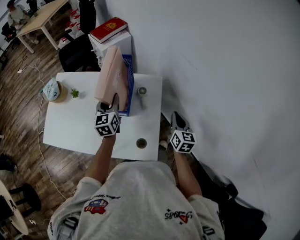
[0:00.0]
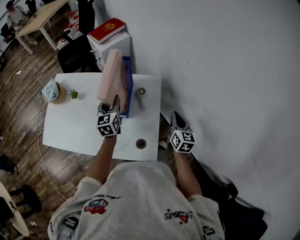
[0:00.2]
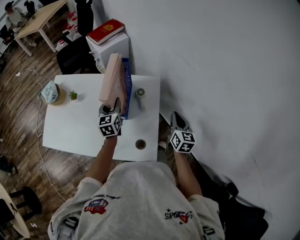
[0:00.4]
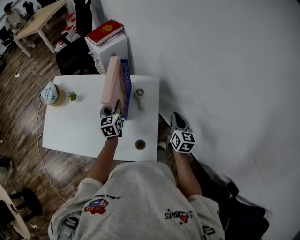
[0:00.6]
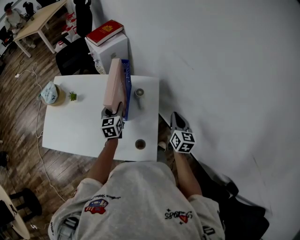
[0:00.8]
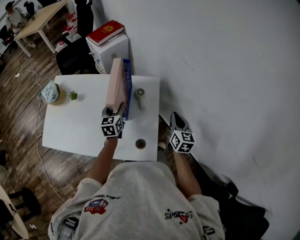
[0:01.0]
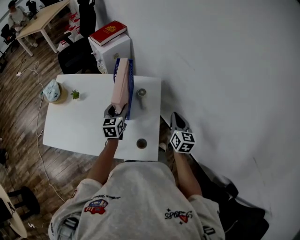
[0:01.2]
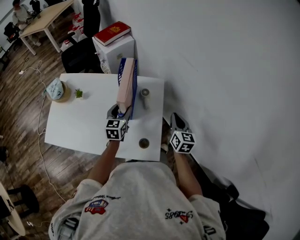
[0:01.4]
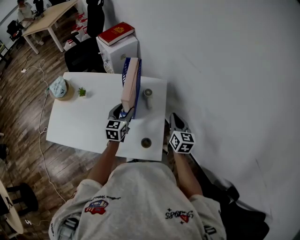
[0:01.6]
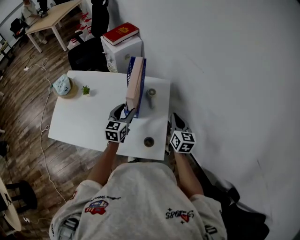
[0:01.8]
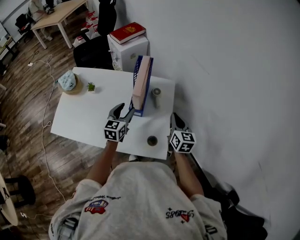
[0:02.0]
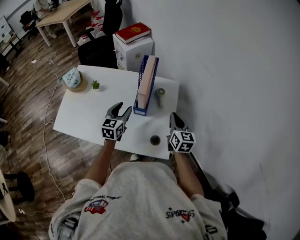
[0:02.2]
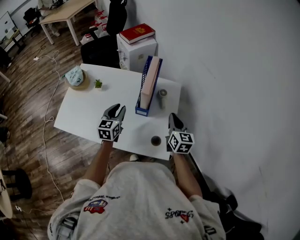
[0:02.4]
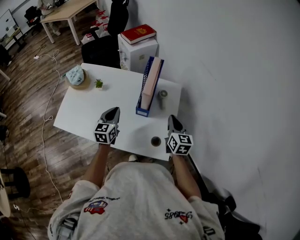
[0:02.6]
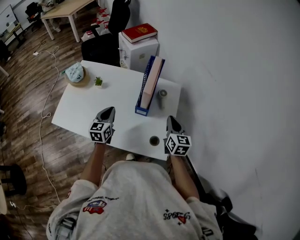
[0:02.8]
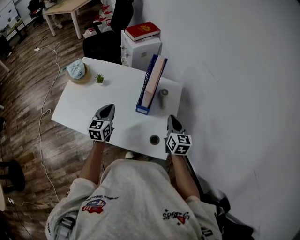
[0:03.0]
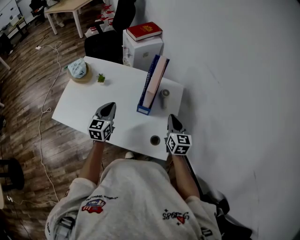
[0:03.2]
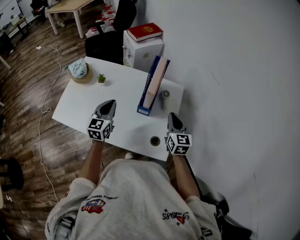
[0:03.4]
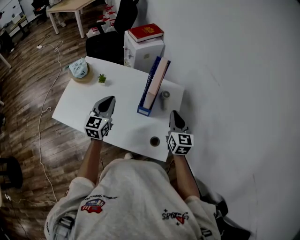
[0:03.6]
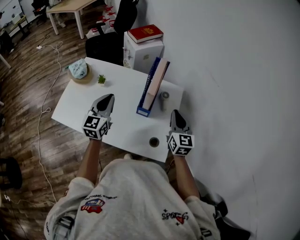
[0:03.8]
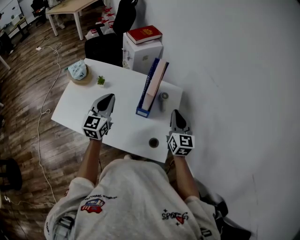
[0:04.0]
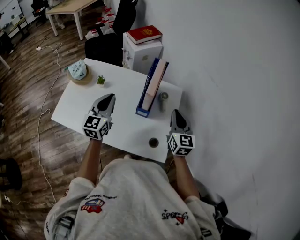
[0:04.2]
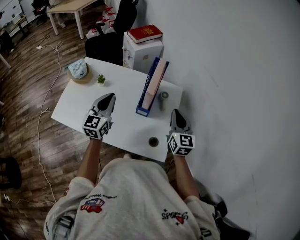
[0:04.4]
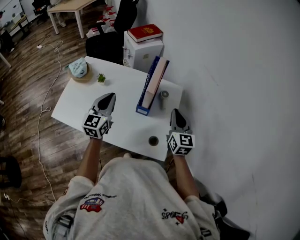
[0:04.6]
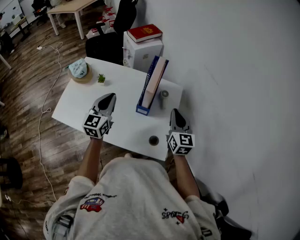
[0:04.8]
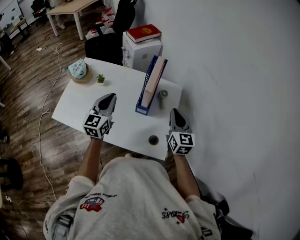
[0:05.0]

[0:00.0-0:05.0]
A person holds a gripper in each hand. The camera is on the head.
0:00.0 to 0:01.6: The right gripper shifts by roughly 5 cm. Meanwhile the left gripper heads backward, covering some 5 cm.
0:01.6 to 0:03.4: The right gripper travels to the left by roughly 15 cm, while the left gripper shifts approximately 20 cm to the left and backward, and closes.
0:03.4 to 0:05.0: The left gripper is displaced upward by about 5 cm.

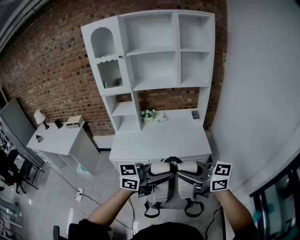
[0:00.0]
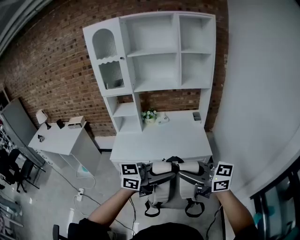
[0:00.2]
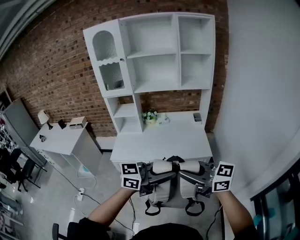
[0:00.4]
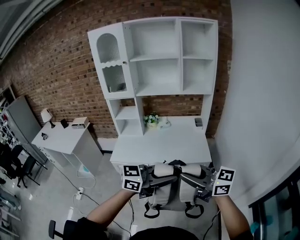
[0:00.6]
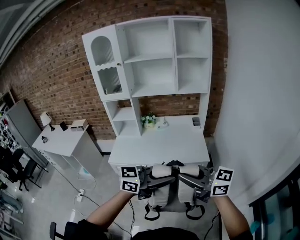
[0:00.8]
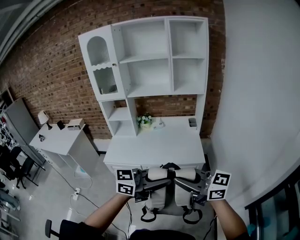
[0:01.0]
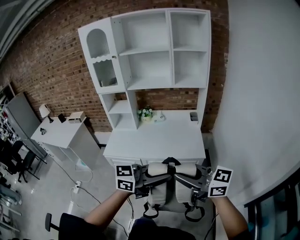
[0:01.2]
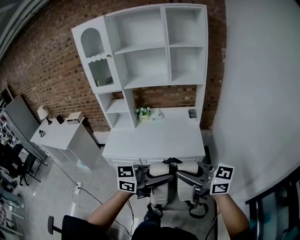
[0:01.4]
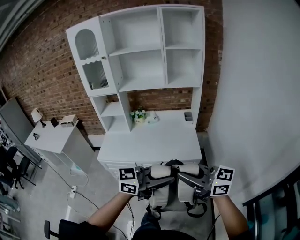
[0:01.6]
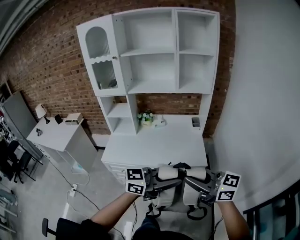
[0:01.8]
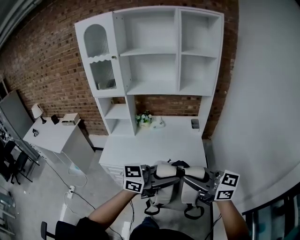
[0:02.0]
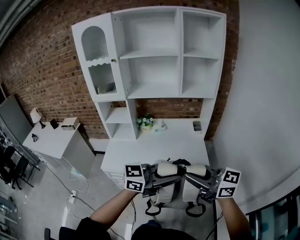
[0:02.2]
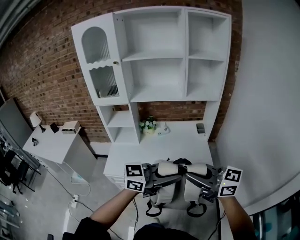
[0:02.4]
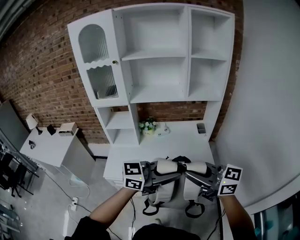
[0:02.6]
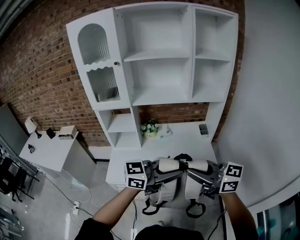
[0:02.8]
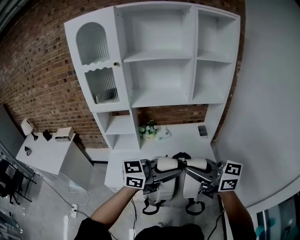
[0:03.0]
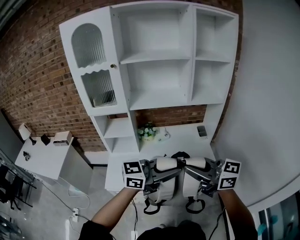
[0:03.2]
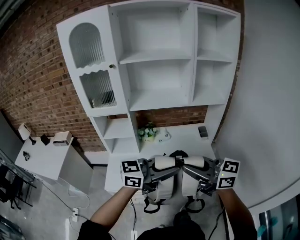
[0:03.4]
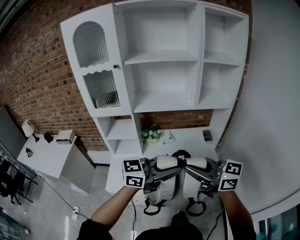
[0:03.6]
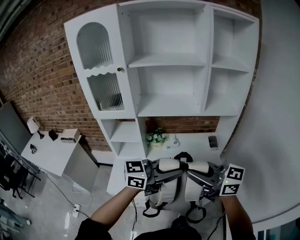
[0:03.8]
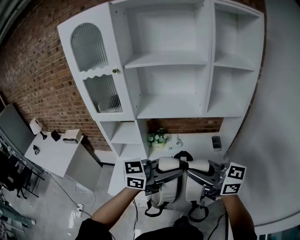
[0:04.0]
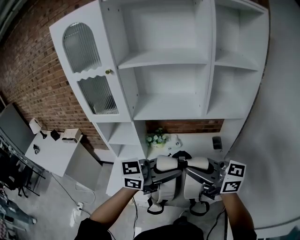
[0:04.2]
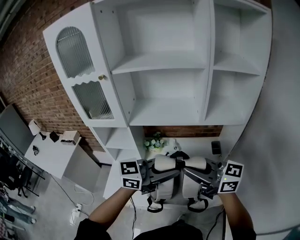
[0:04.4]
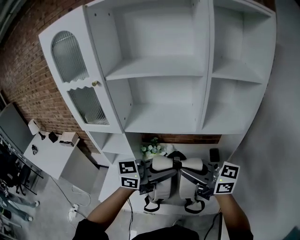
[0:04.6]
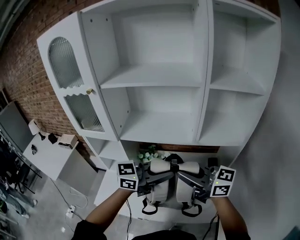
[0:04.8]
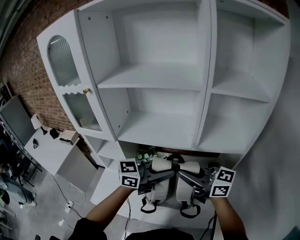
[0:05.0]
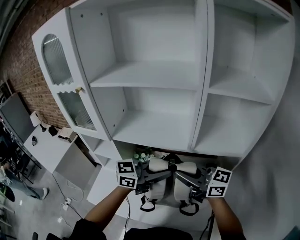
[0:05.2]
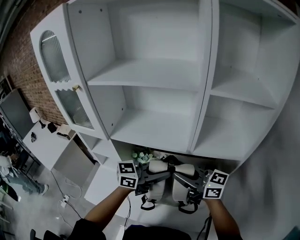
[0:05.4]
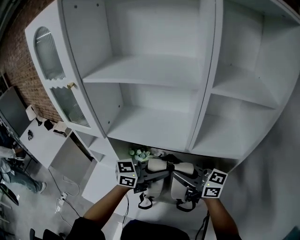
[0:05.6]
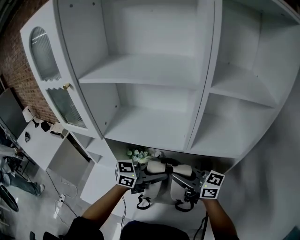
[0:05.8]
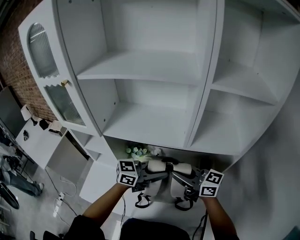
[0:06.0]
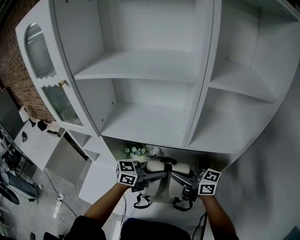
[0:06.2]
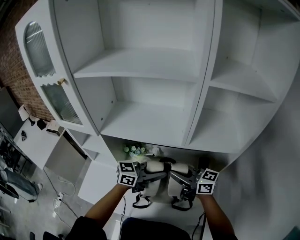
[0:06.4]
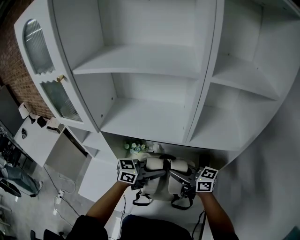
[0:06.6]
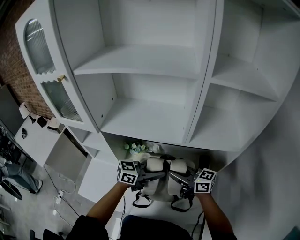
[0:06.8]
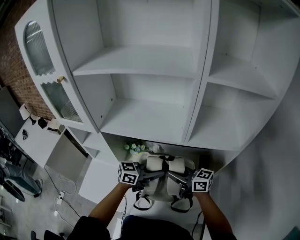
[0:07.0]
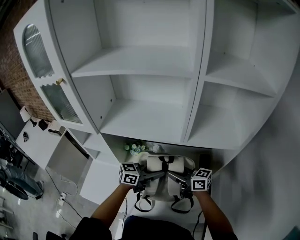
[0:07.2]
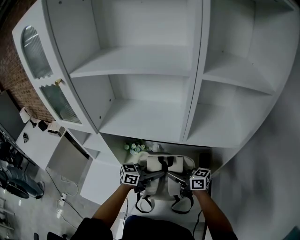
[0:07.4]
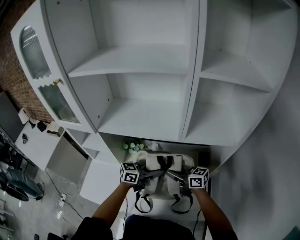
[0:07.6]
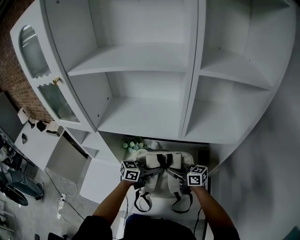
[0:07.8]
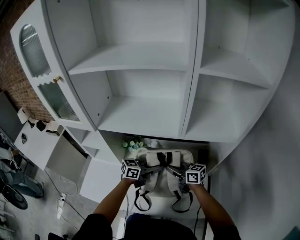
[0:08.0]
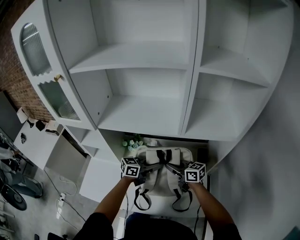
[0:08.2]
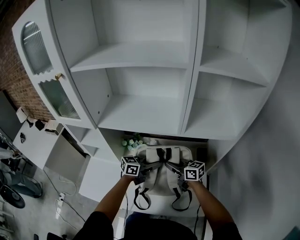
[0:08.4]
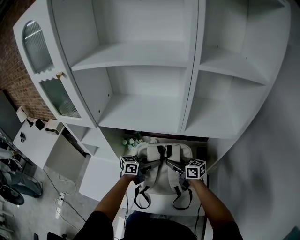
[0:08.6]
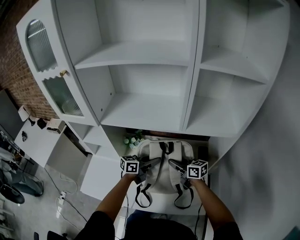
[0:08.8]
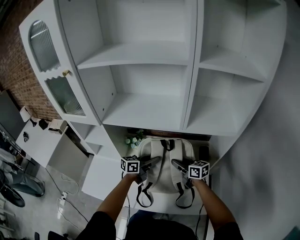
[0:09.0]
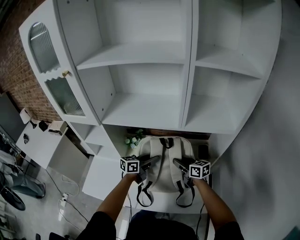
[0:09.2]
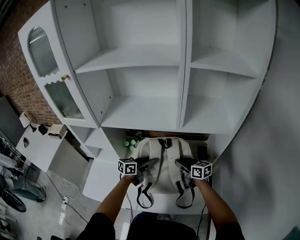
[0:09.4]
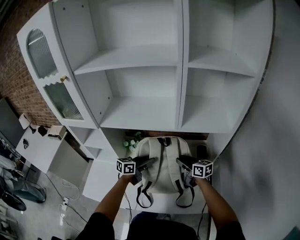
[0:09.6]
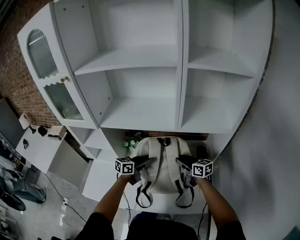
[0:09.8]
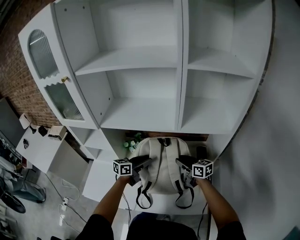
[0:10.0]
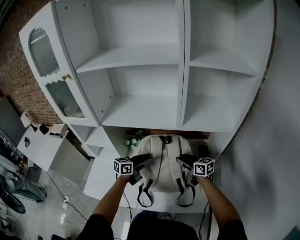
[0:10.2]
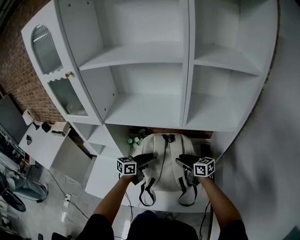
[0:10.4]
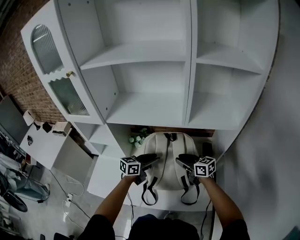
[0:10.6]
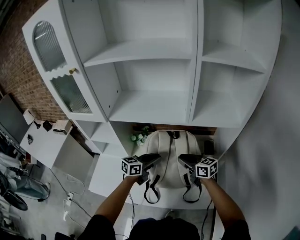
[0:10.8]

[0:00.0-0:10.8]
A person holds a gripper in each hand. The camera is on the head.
0:00.0 to 0:01.6: The right gripper ends up about 15 cm from where it was. Meanwhile the left gripper changes place by roughly 15 cm.
0:01.6 to 0:03.0: The right gripper moves approximately 30 cm. The left gripper changes place by approximately 30 cm.
0:03.0 to 0:04.6: The left gripper shifts by some 25 cm. The right gripper ends up about 25 cm from where it was.
0:04.6 to 0:06.2: The left gripper moves approximately 20 cm. The right gripper moves some 20 cm.
0:06.2 to 0:07.8: The two grippers go some 15 cm downward.
0:07.8 to 0:09.2: The left gripper shifts by some 5 cm. The right gripper moves approximately 5 cm, and opens its fingers.
0:09.2 to 0:10.8: The right gripper changes place by approximately 5 cm.

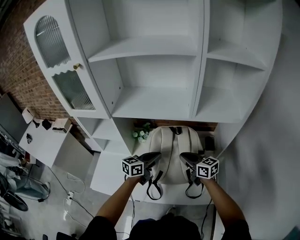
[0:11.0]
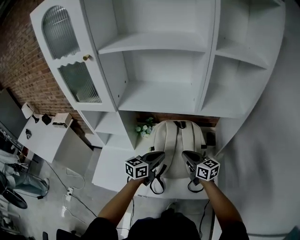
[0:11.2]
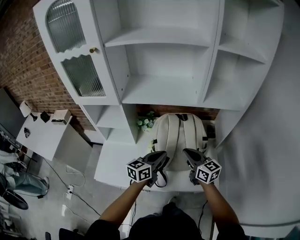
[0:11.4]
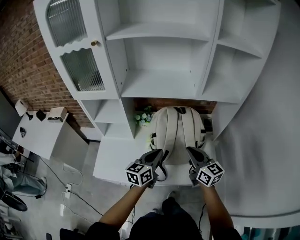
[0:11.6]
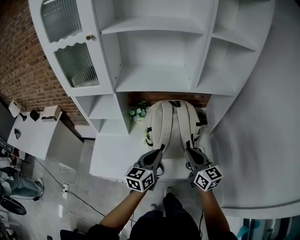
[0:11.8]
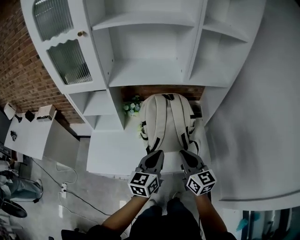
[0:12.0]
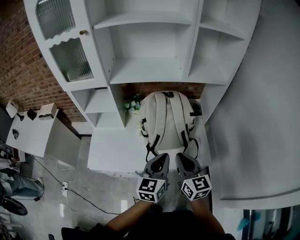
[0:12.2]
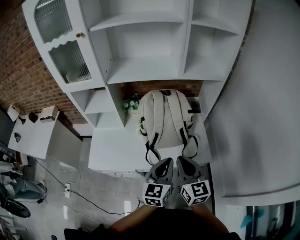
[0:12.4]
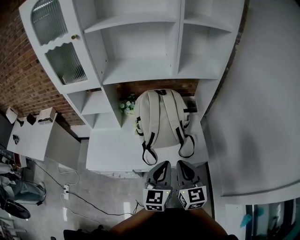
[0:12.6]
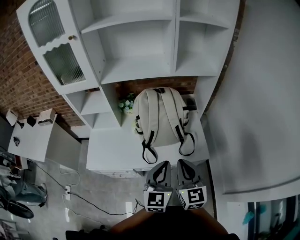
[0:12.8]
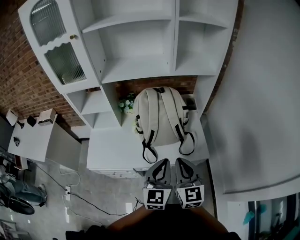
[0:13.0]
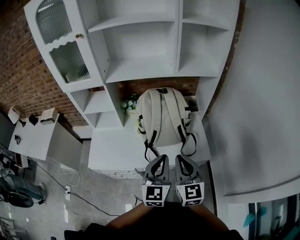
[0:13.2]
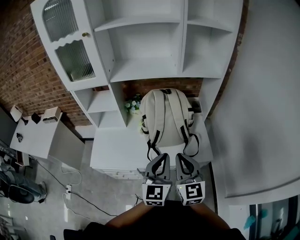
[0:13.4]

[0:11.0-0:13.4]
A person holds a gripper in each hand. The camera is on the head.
0:11.0 to 0:12.2: Both grippers move backward, roughly 25 cm. The left gripper swivels roughly 20 degrees. The right gripper rotates about 30 degrees.
0:12.2 to 0:13.4: Both grippers travel together backward, approximately 5 cm.

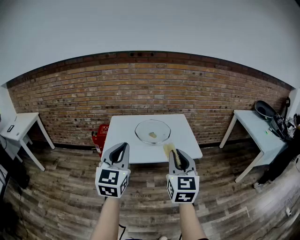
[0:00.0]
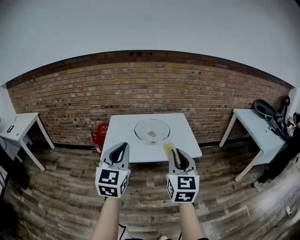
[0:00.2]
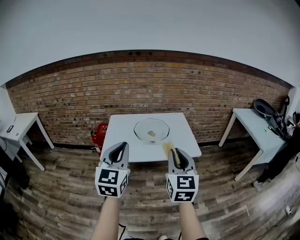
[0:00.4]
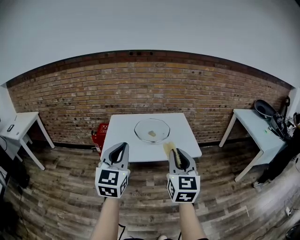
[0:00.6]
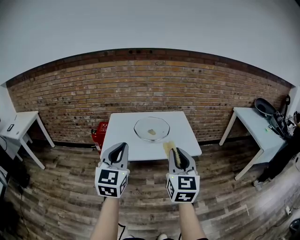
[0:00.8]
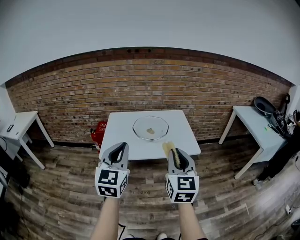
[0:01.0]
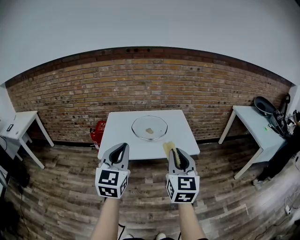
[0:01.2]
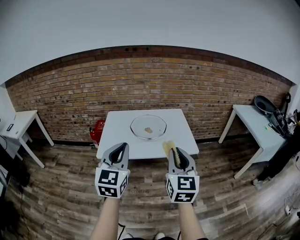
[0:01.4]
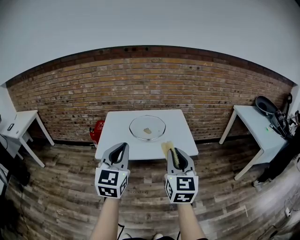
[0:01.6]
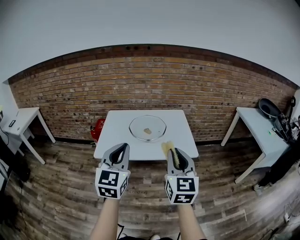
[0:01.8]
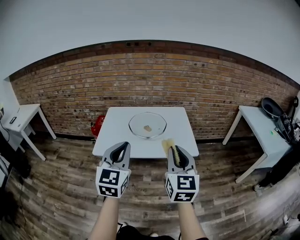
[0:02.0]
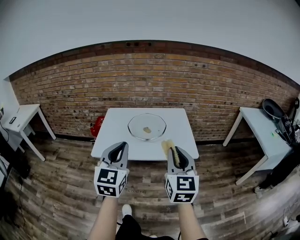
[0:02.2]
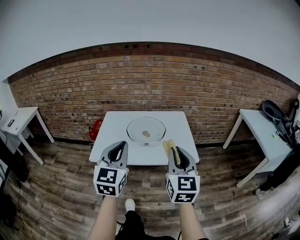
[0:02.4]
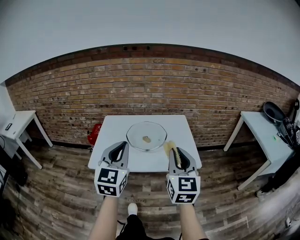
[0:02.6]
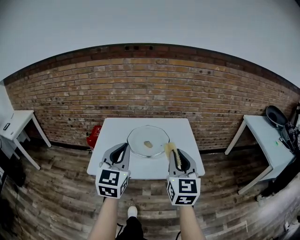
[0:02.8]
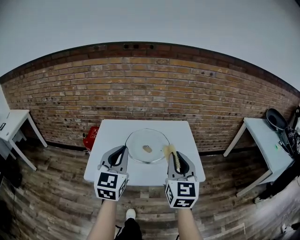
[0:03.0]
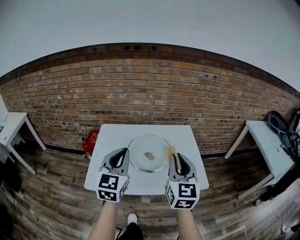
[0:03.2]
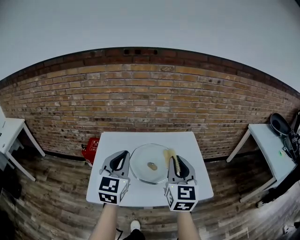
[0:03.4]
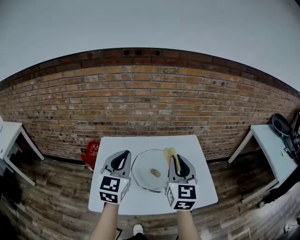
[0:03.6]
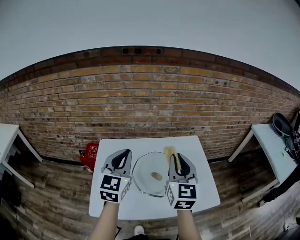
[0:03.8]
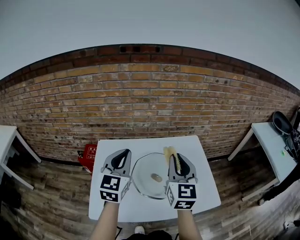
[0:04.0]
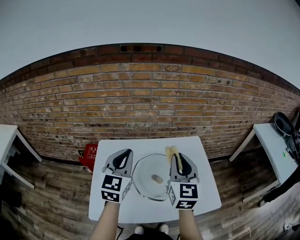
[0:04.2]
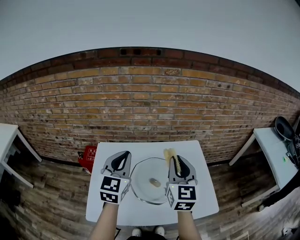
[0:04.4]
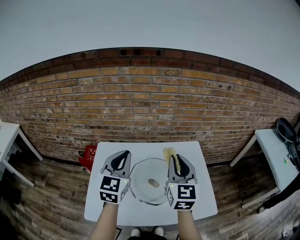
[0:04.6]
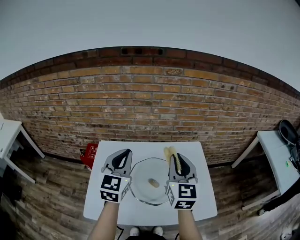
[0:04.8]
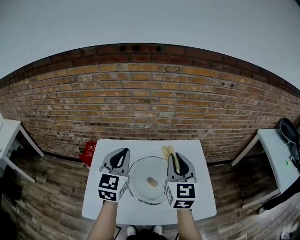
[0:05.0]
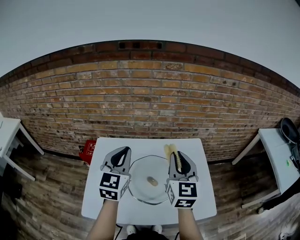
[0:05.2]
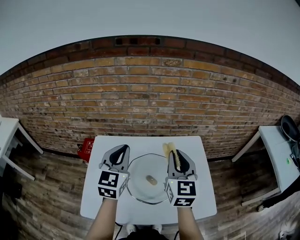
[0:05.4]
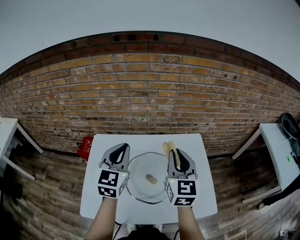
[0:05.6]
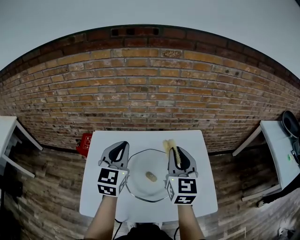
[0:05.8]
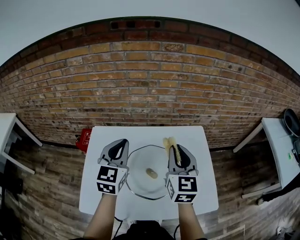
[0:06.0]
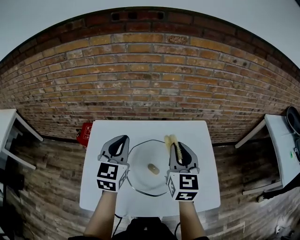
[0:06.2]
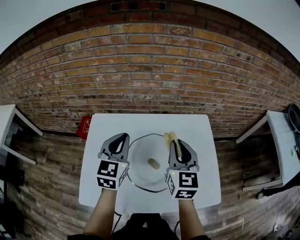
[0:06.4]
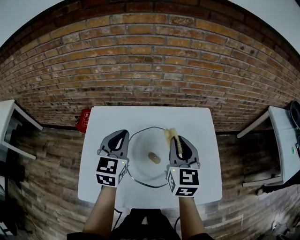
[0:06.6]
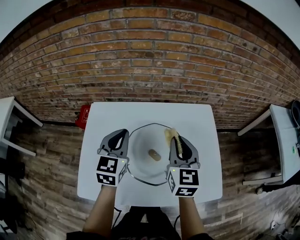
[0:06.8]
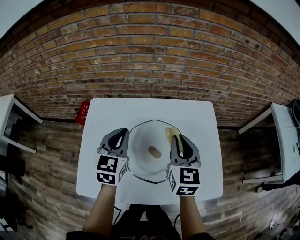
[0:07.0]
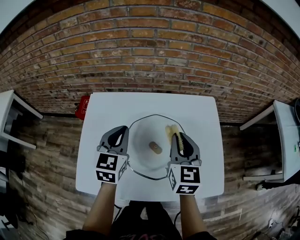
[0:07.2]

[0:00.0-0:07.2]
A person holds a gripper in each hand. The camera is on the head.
0:00.0 to 0:01.4: The grippers make only small movements.
0:01.4 to 0:02.8: Both grippers move forward, some 20 cm.
0:02.8 to 0:04.4: The two grippers go roughly 30 cm forward.
0:04.4 to 0:05.8: The grippers both shift forward by about 5 cm.
0:05.8 to 0:07.2: Both grippers move downward, approximately 10 cm.
